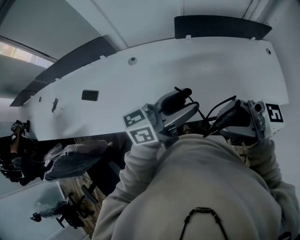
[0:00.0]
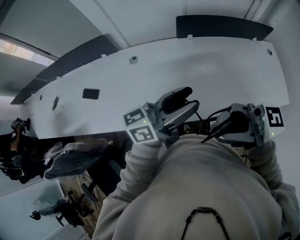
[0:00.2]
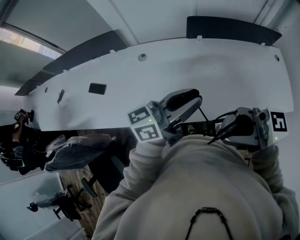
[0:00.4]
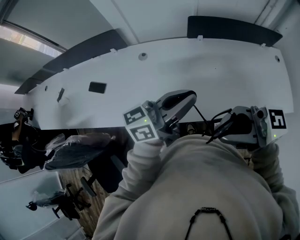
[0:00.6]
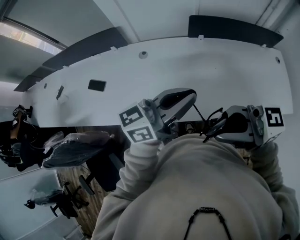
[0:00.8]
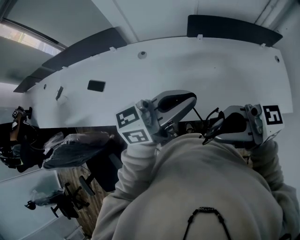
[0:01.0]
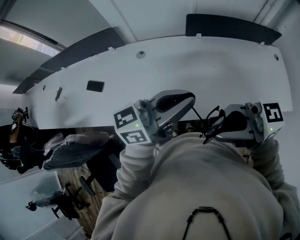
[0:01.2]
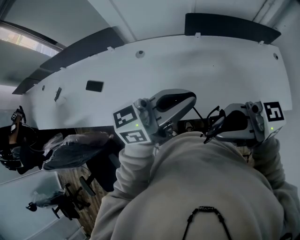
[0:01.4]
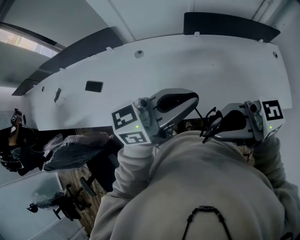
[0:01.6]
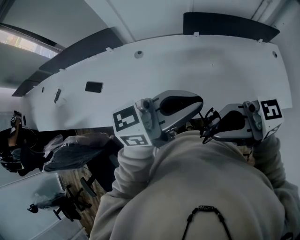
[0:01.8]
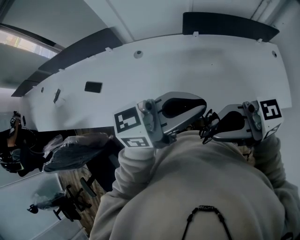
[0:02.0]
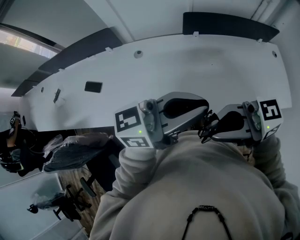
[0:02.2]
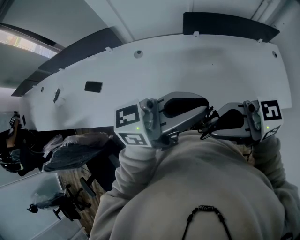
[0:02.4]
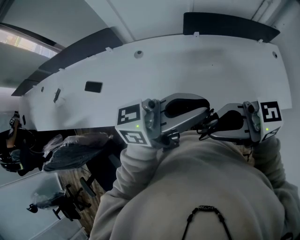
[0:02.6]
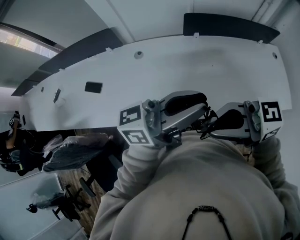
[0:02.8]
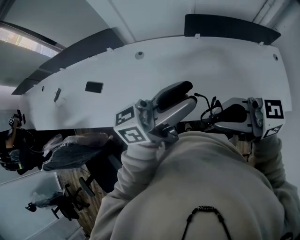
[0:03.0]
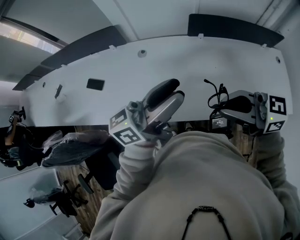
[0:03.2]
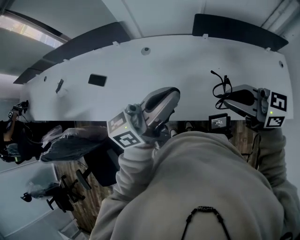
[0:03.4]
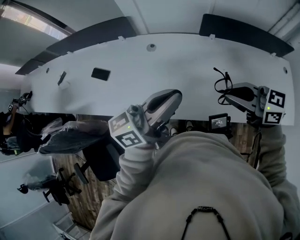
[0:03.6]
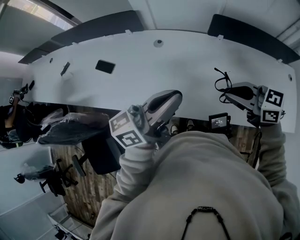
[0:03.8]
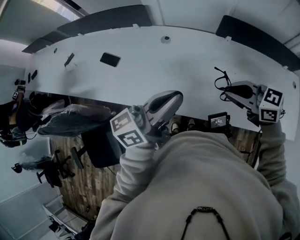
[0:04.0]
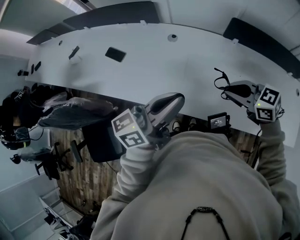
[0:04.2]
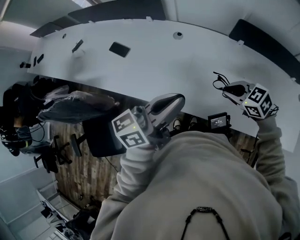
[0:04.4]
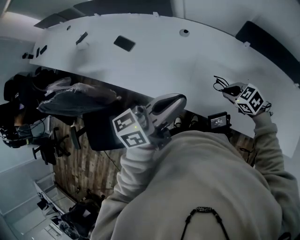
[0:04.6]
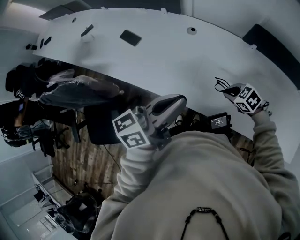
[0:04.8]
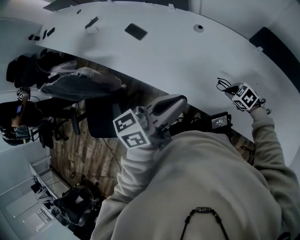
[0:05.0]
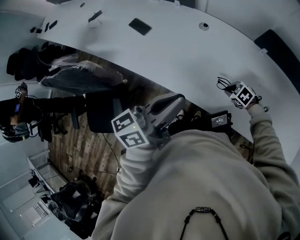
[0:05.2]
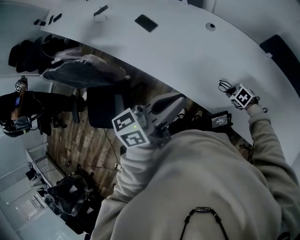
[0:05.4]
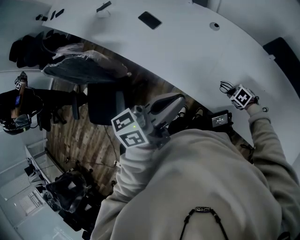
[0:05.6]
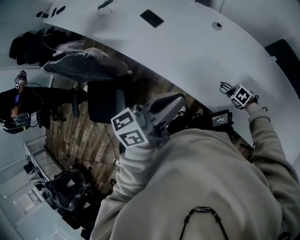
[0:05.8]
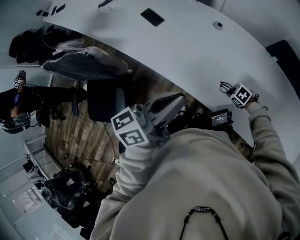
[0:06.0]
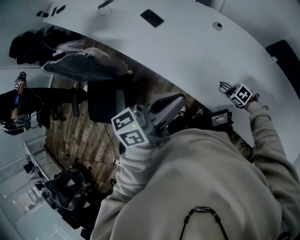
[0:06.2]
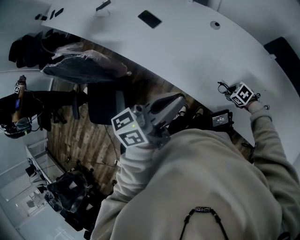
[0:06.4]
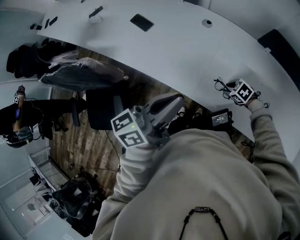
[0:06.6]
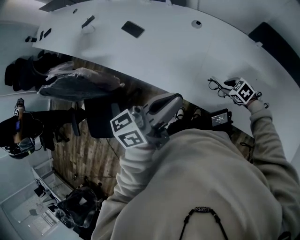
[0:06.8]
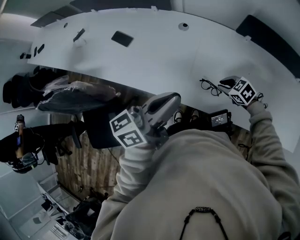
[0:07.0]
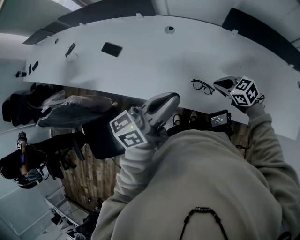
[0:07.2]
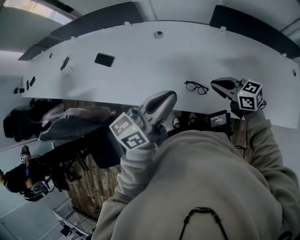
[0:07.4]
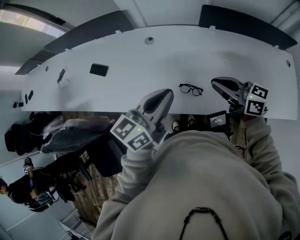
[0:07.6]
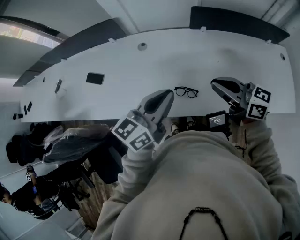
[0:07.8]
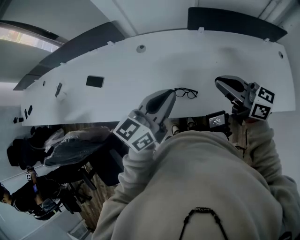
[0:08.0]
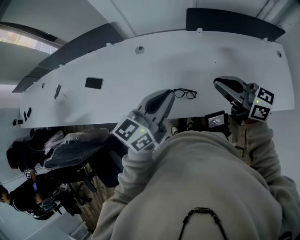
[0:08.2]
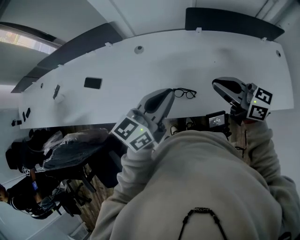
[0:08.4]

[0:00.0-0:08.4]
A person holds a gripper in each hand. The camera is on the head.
0.0 to 1.4 s: The left gripper changes place by roughly 5 cm, and closes. Meanwhile the right gripper shifts by some 5 cm.
1.4 to 2.8 s: The grippers make only small movements.
2.8 to 4.2 s: The left gripper moves roughly 15 cm, swivels some 40 degrees, and opens, then closes again, while the right gripper heads downward, covering some 15 cm, and tips its fingers downward by roughly 30 degrees.
4.2 to 5.6 s: The left gripper changes place by about 15 cm, and rotates some 20 degrees. Meanwhile the right gripper is displaced downward by approximately 30 cm, and tips its fingers downward by roughly 40 degrees.
5.6 to 7.0 s: The right gripper goes about 10 cm upward, and changes its angle by roughly 30 degrees, while the left gripper shifts by some 5 cm.
7.0 to 8.4 s: The right gripper moves upward, approximately 30 cm, and tilts its fingers approximately 50 degrees upward; the left gripper heads to the right, covering about 15 cm, and rotates some 20 degrees.

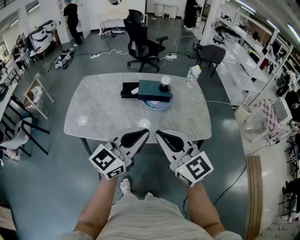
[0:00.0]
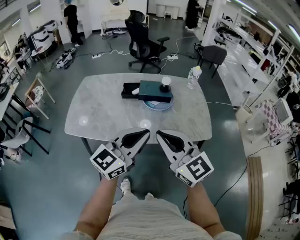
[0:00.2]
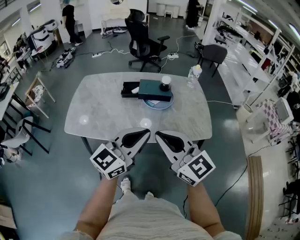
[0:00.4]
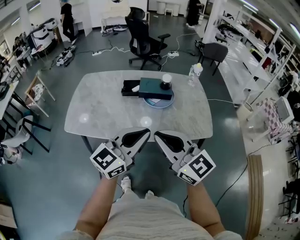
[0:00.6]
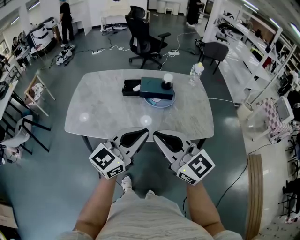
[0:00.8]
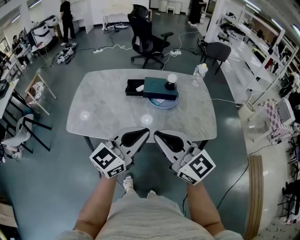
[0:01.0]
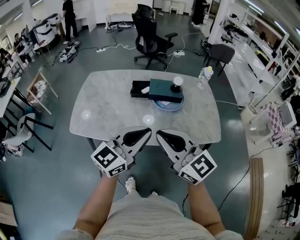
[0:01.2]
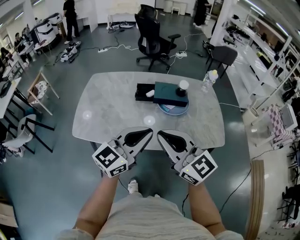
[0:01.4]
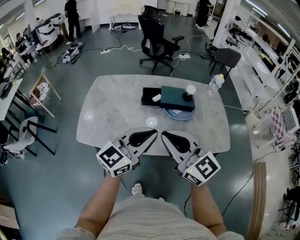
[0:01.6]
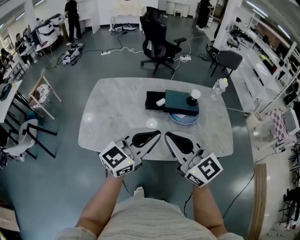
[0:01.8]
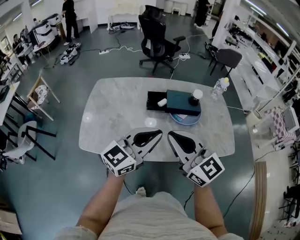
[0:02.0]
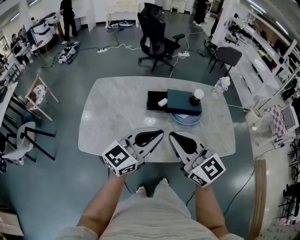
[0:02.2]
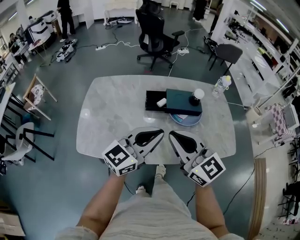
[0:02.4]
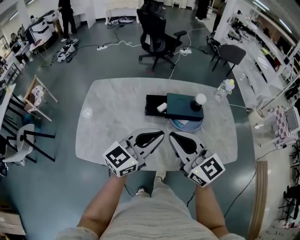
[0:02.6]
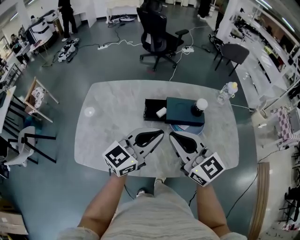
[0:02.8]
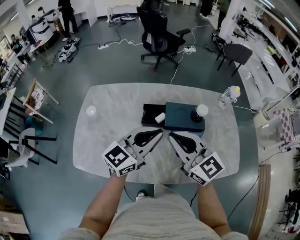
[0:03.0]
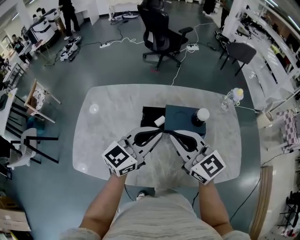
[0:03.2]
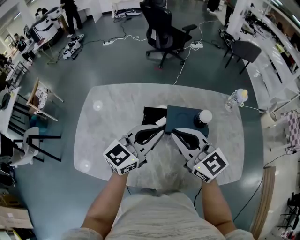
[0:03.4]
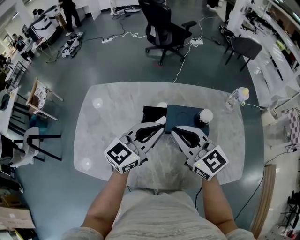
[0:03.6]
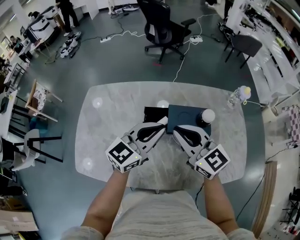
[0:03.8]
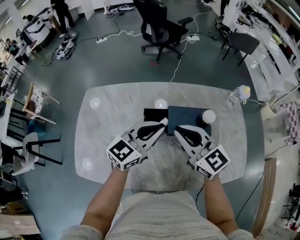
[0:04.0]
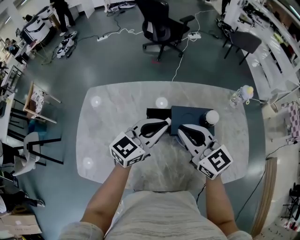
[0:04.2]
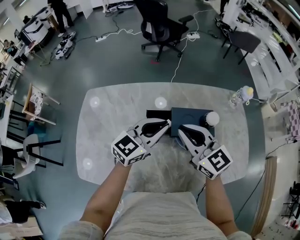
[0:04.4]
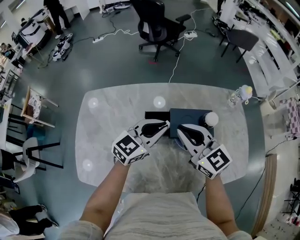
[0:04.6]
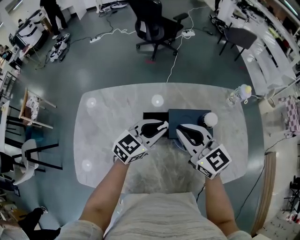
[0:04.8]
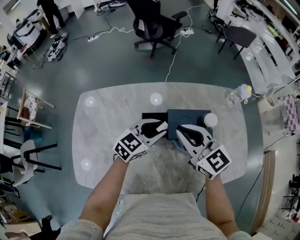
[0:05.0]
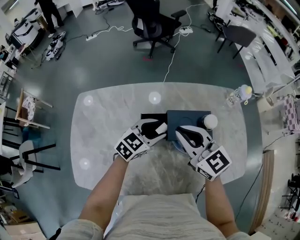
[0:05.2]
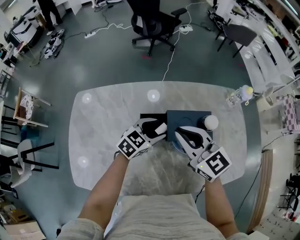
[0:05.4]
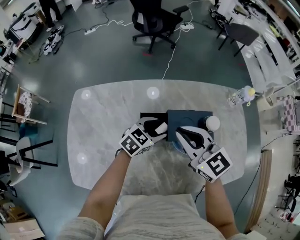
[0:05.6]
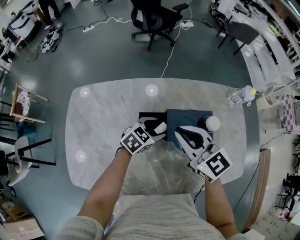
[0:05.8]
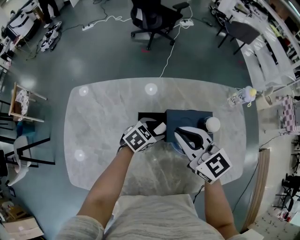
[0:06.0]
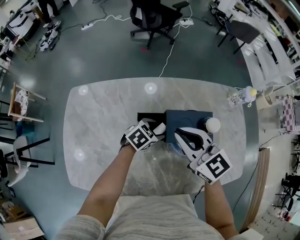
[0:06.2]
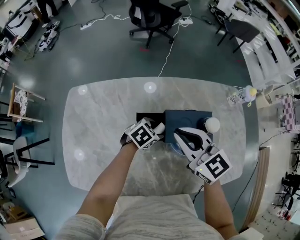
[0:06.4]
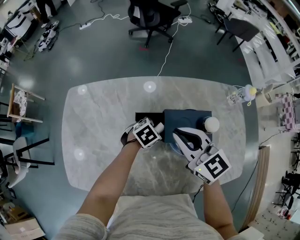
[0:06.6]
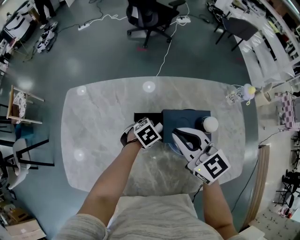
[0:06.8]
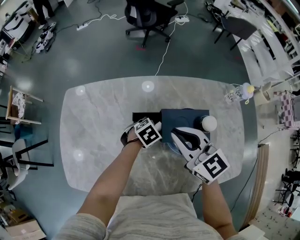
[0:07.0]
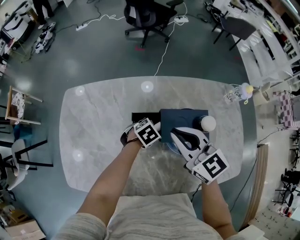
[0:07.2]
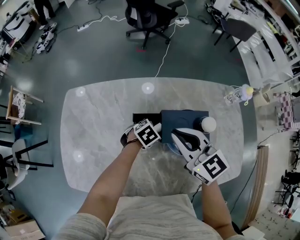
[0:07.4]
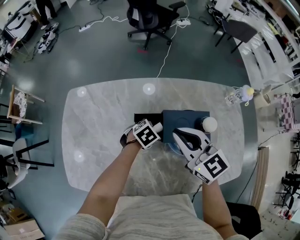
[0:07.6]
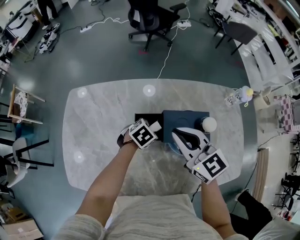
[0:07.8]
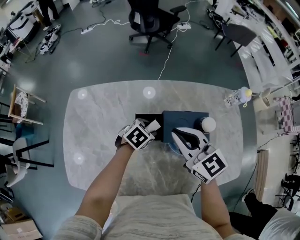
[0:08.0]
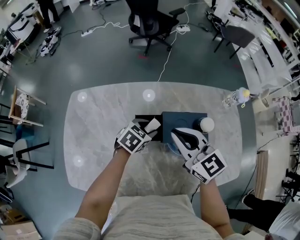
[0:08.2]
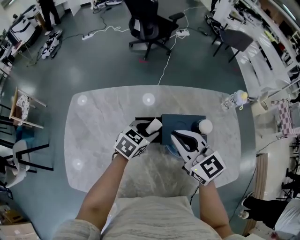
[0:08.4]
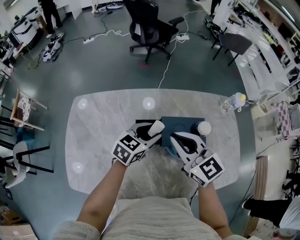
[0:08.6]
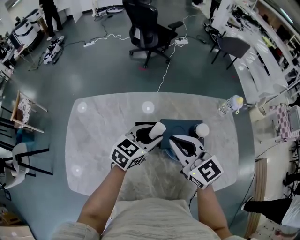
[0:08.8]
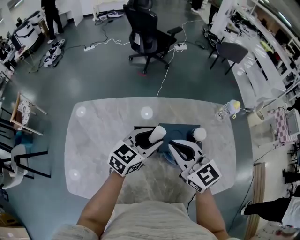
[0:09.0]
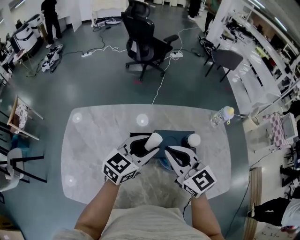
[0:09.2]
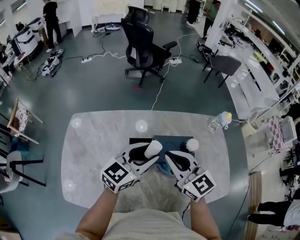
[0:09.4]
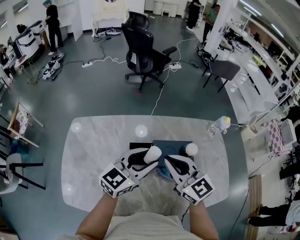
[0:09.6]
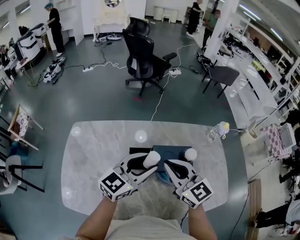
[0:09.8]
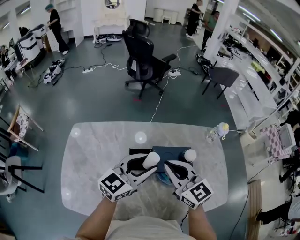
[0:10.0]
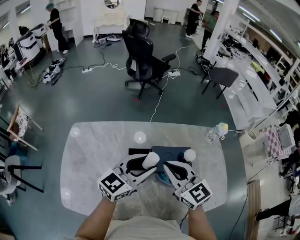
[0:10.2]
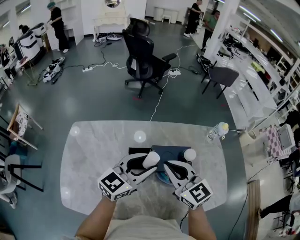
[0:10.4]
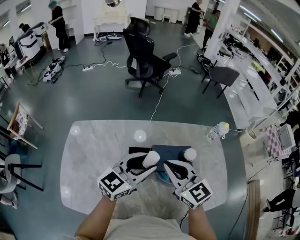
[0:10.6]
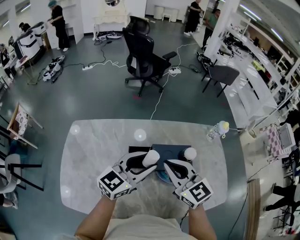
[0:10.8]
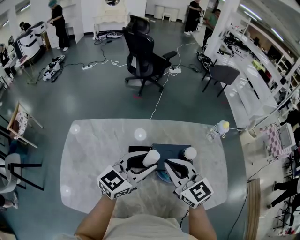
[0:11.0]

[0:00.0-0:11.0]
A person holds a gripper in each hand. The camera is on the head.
0.0 to 1.6 s: Both grippers move to the left and forward, roughly 15 cm.
1.6 to 3.2 s: Both grippers travel together forward, about 25 cm.
3.2 to 4.8 s: The left gripper heads forward and downward, covering roughly 15 cm, while the right gripper travels forward by approximately 10 cm.
4.8 to 6.2 s: The left gripper travels downward by some 15 cm, tilts its fingers approximately 30 degrees downward, and opens.
6.2 to 7.8 s: There are only small adjustments of the grippers.
7.8 to 9.4 s: The left gripper is displaced upward by roughly 25 cm, and tips its fingers upward by some 50 degrees; the right gripper goes approximately 5 cm upward.
9.4 to 11.0 s: The grippers make only small movements.

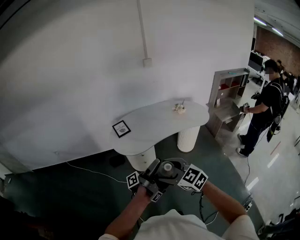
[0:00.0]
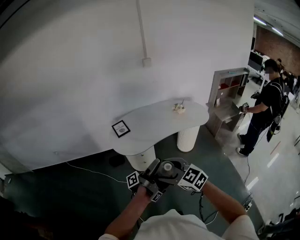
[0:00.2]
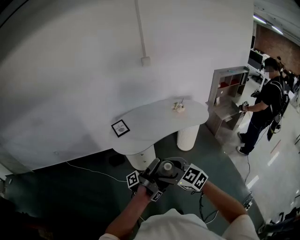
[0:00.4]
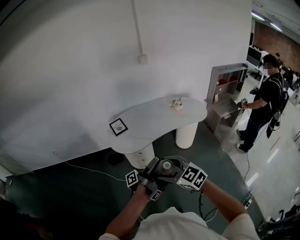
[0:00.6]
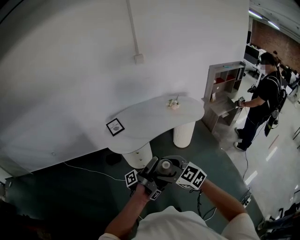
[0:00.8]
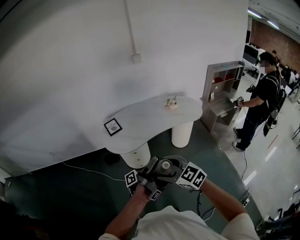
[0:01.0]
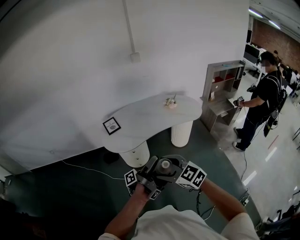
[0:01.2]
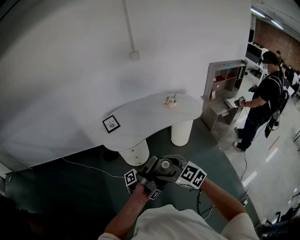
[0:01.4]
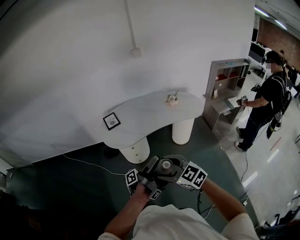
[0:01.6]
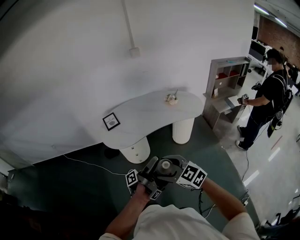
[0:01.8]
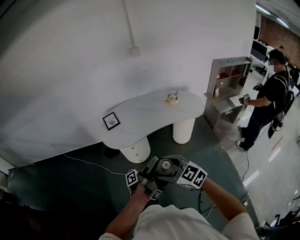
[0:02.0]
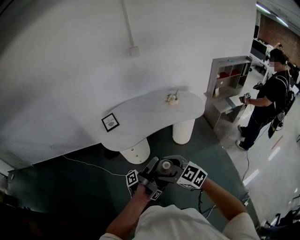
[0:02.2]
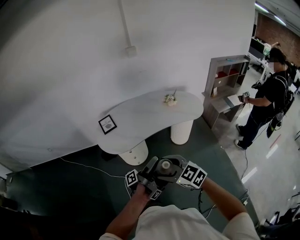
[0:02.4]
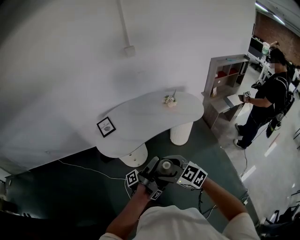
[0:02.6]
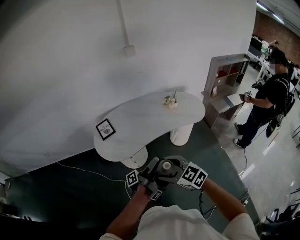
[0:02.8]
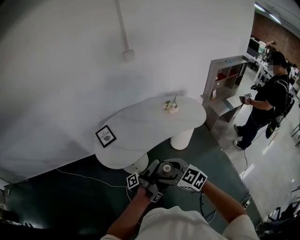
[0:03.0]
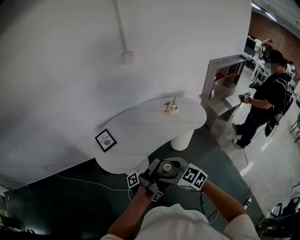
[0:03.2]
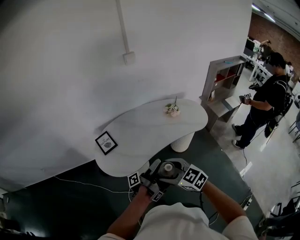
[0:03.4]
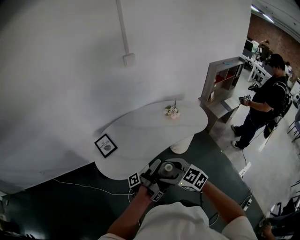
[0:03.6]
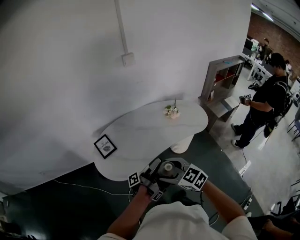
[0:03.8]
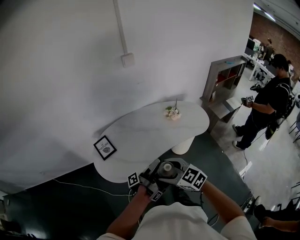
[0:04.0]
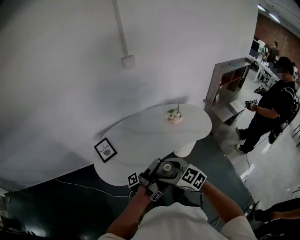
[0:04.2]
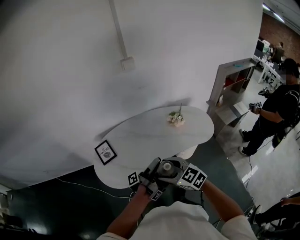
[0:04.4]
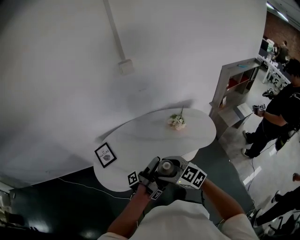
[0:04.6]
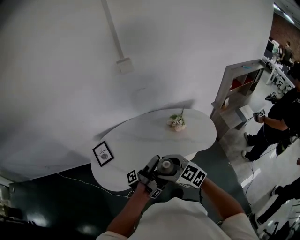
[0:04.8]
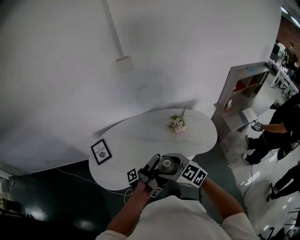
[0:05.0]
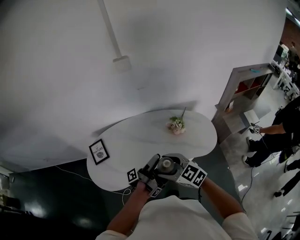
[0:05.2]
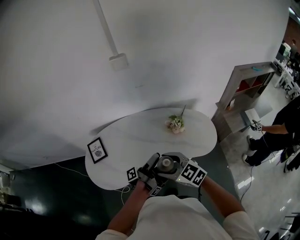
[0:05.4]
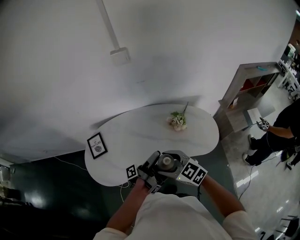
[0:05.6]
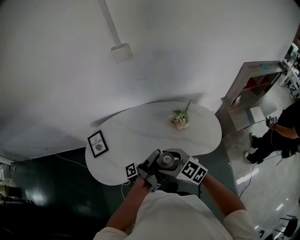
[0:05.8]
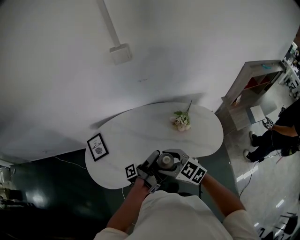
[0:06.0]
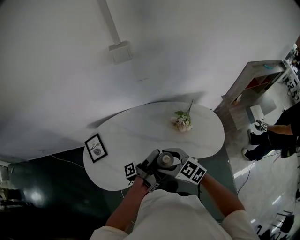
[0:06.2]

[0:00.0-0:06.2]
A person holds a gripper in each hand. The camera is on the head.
0.0 to 1.6 s: The right gripper ends up some 10 cm from where it was.
1.6 to 3.2 s: The right gripper moves approximately 25 cm.
3.2 to 4.6 s: The right gripper moves roughly 20 cm.
4.6 to 6.2 s: The right gripper shifts by approximately 20 cm.
